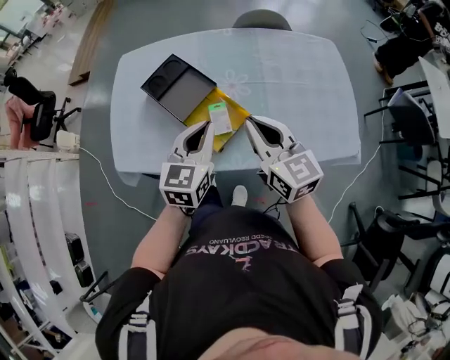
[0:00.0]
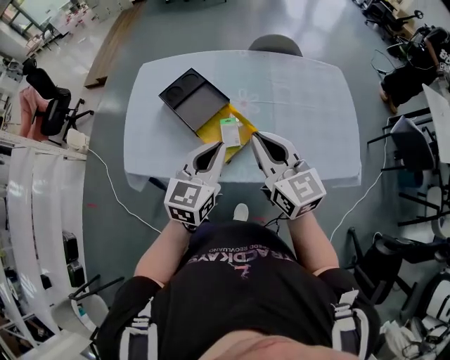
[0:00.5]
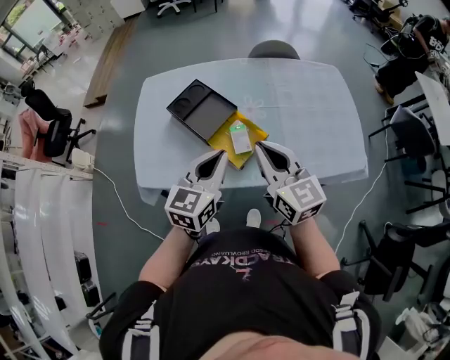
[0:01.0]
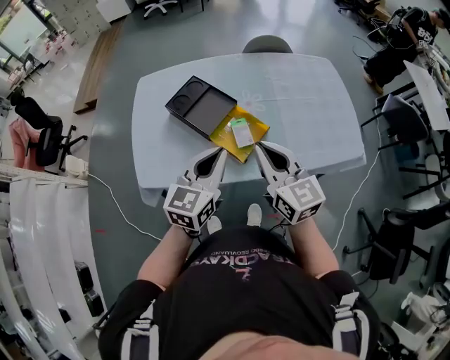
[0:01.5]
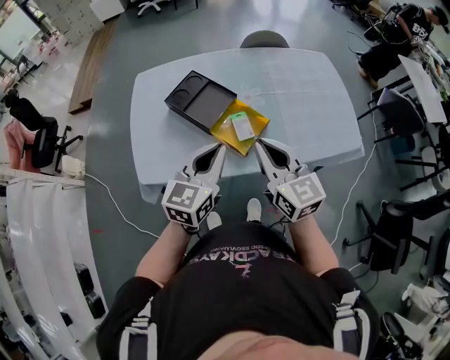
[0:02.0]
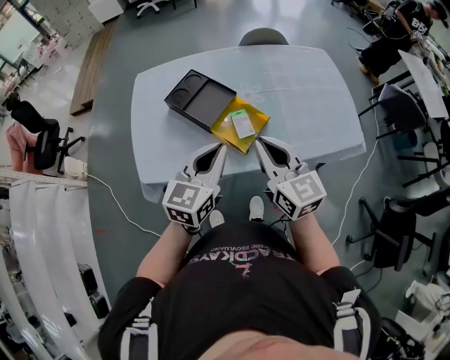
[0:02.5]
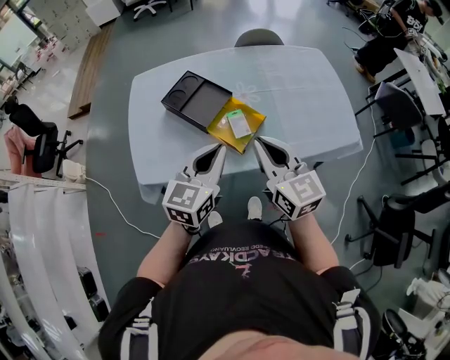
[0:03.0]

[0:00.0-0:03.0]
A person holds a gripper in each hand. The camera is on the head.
0:00.0 to 0:01.5: The left gripper moves to the left, backward and upward, approximately 10 cm, while the right gripper shifts about 10 cm to the left and backward.
0:01.5 to 0:03.0: The grippers make only small movements.

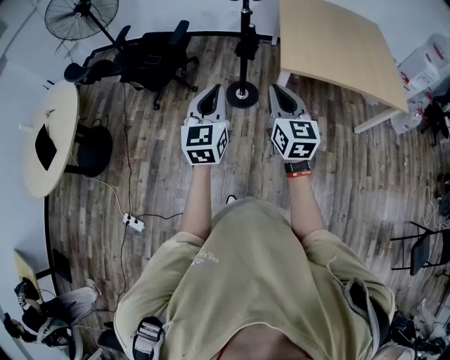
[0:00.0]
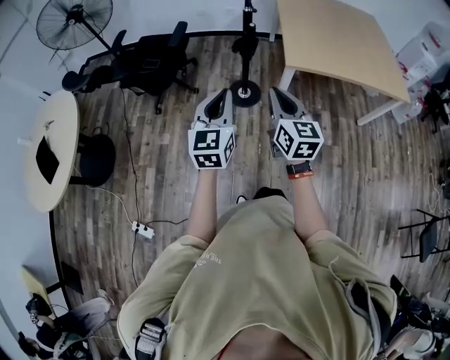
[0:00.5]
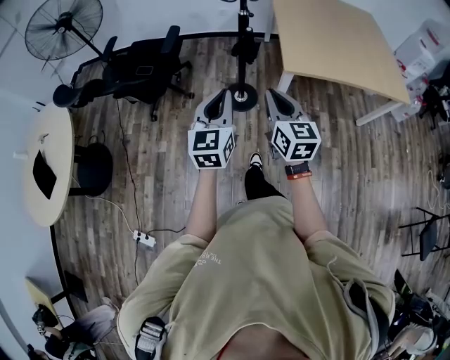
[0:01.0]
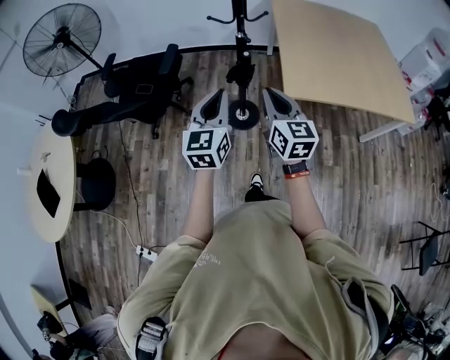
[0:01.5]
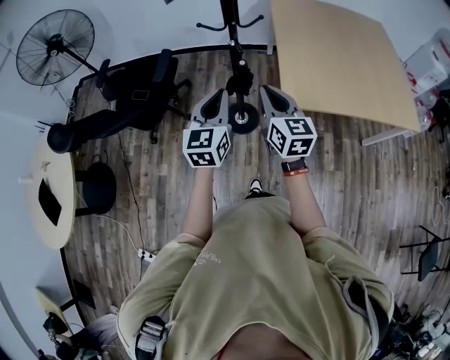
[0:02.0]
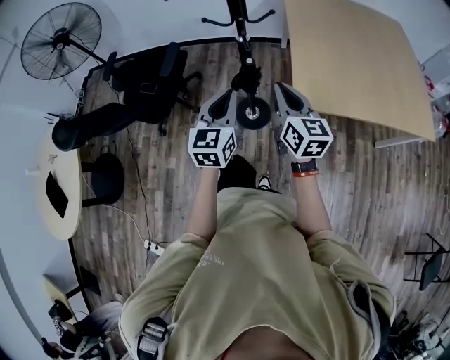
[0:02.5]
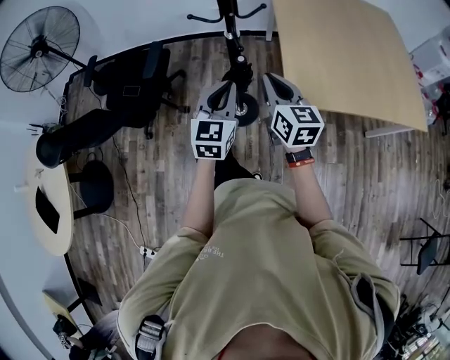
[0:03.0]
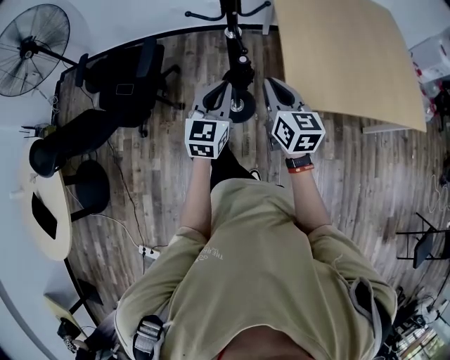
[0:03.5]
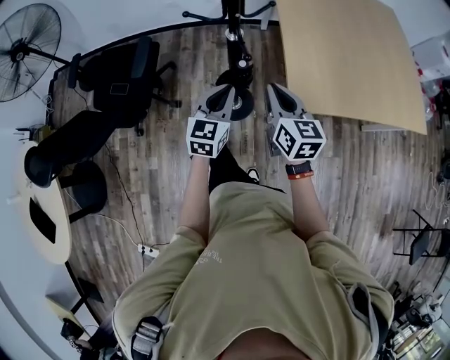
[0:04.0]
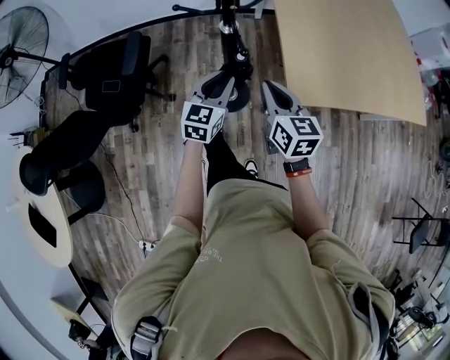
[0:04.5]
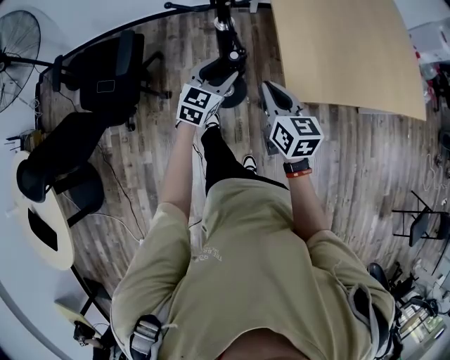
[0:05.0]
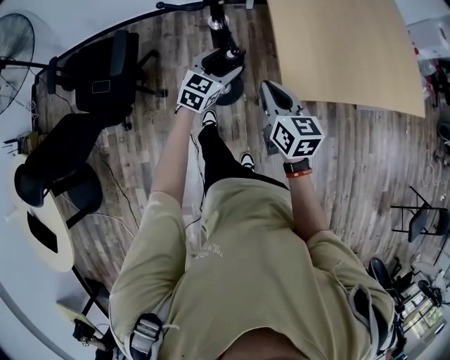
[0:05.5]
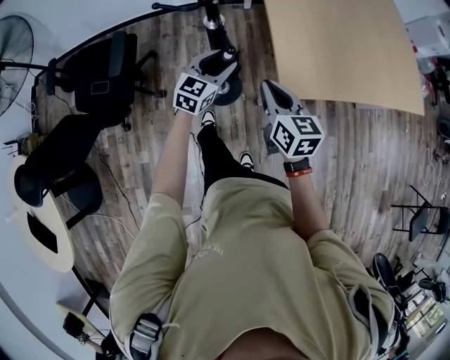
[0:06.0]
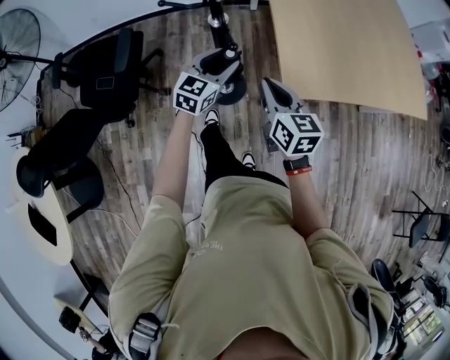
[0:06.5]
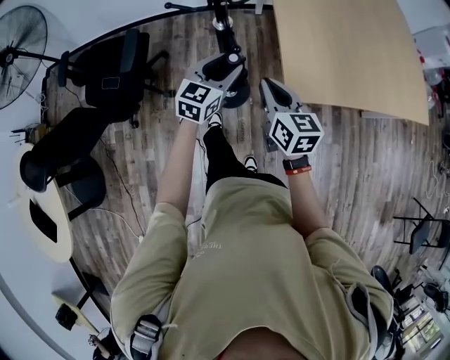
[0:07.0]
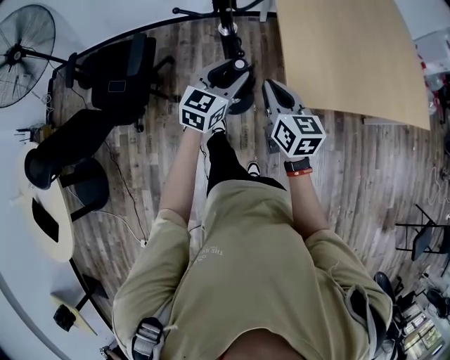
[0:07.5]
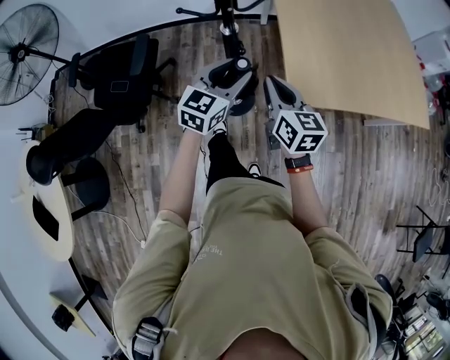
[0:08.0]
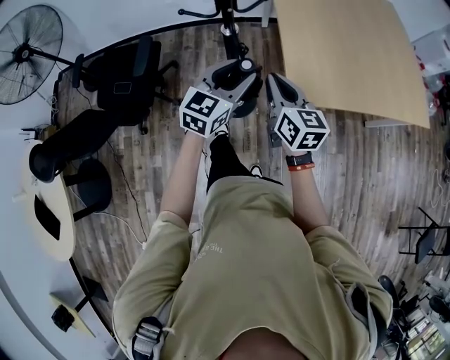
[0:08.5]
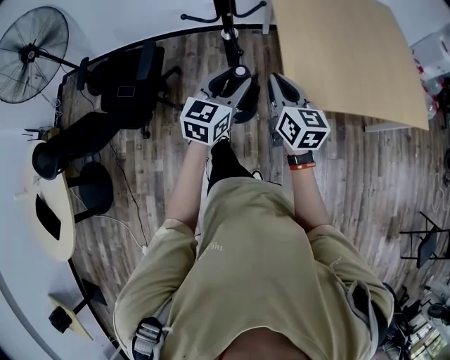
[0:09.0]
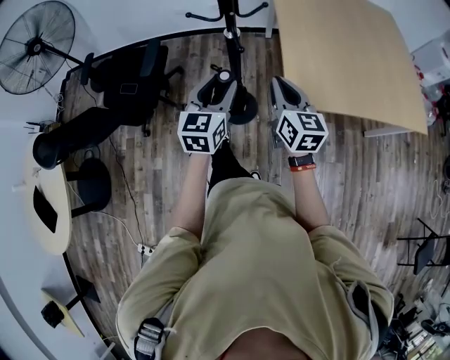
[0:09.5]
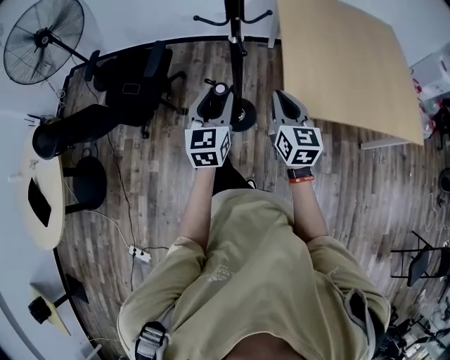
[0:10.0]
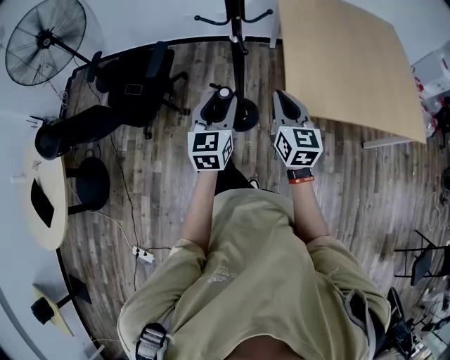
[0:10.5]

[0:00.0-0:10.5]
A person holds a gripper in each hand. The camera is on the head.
0:00.0 to 0:02.0: Both grippers move forward, approximately 35 cm.
0:02.0 to 0:04.0: Both grippers travel together forward and downward, about 25 cm.
0:04.0 to 0:06.5: The left gripper moves forward and downward, about 10 cm, and opens, while the right gripper travels downward by roughly 5 cm.
0:06.5 to 0:08.5: The left gripper goes some 15 cm upward and backward. Meanwhile the right gripper travels upward by roughly 5 cm.
0:08.5 to 0:10.5: The left gripper travels backward and to the left by approximately 15 cm, and turns by some 30 degrees. The right gripper moves backward, roughly 10 cm.

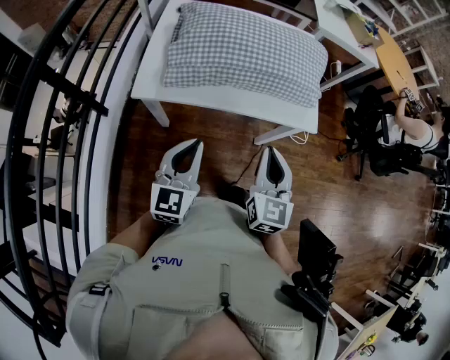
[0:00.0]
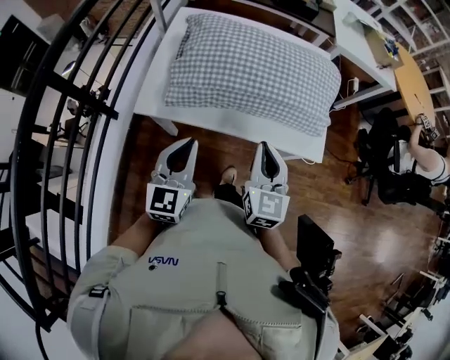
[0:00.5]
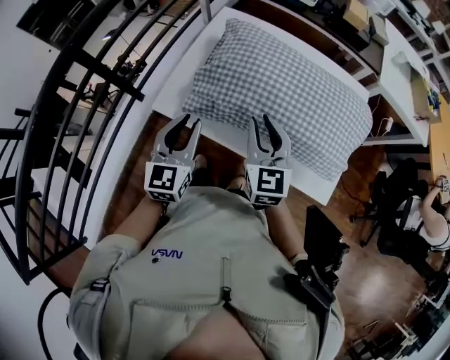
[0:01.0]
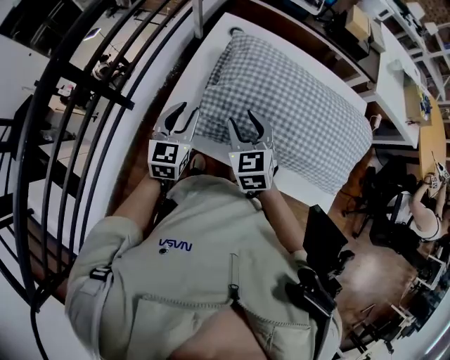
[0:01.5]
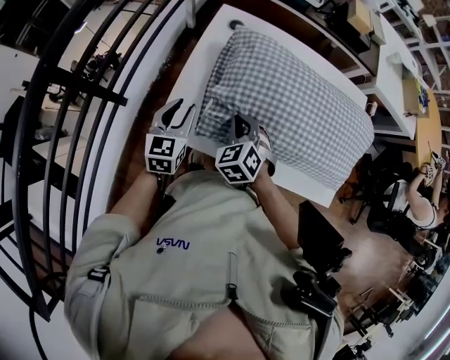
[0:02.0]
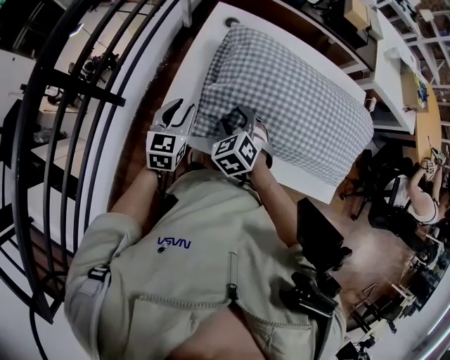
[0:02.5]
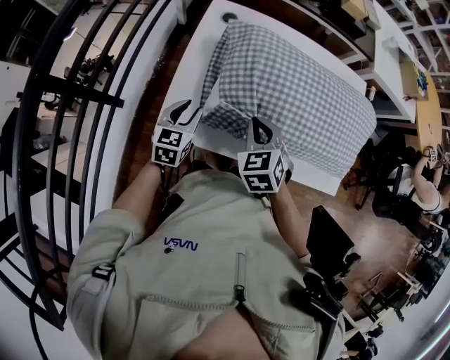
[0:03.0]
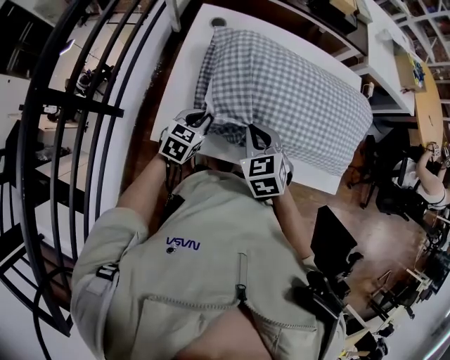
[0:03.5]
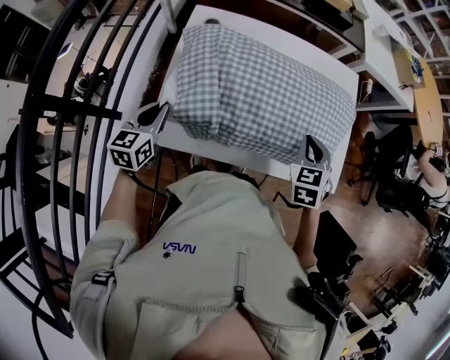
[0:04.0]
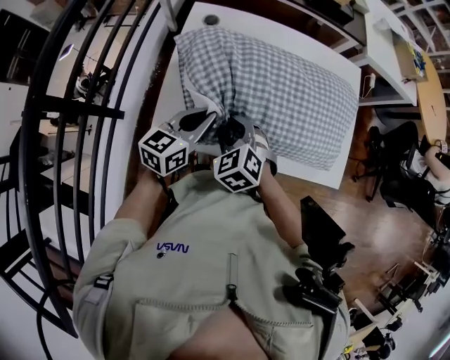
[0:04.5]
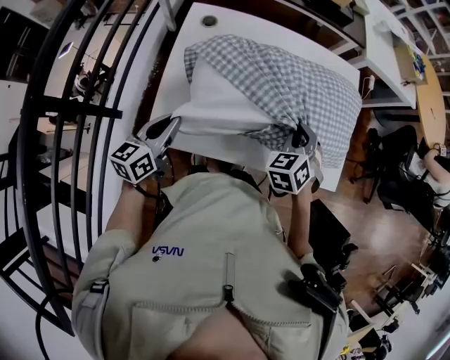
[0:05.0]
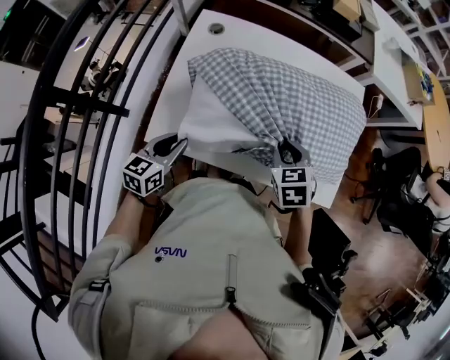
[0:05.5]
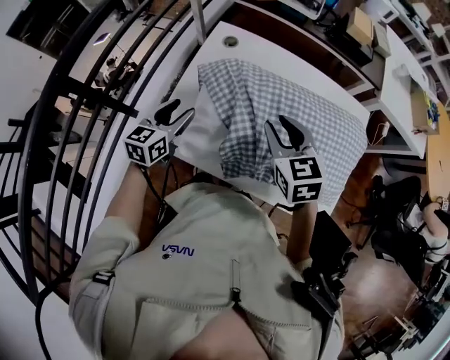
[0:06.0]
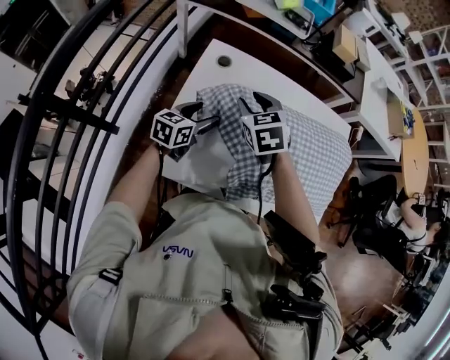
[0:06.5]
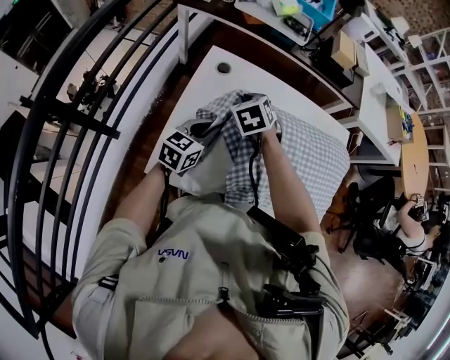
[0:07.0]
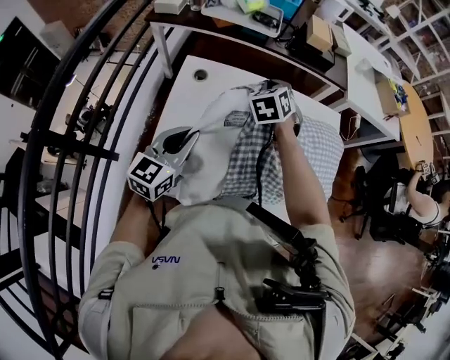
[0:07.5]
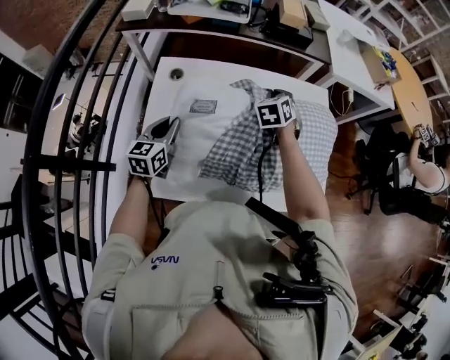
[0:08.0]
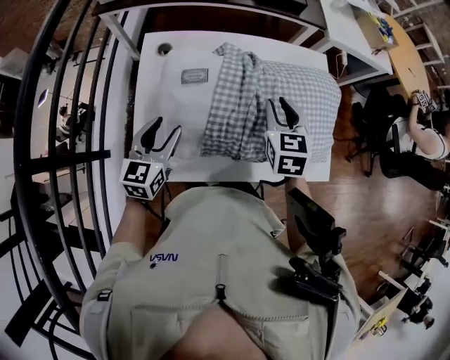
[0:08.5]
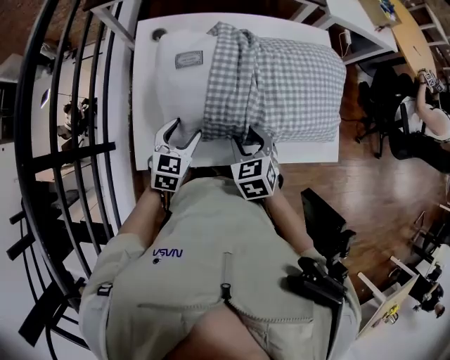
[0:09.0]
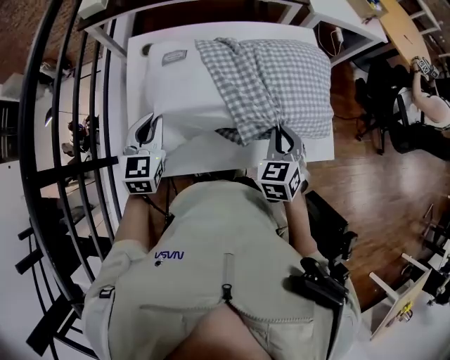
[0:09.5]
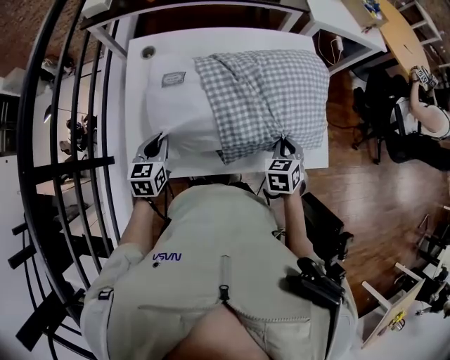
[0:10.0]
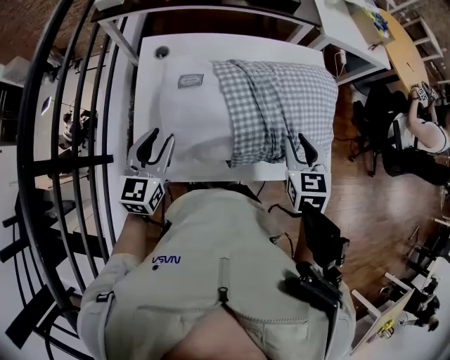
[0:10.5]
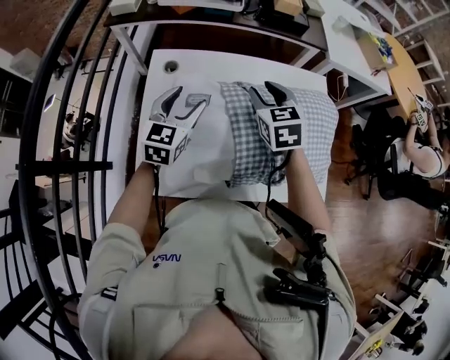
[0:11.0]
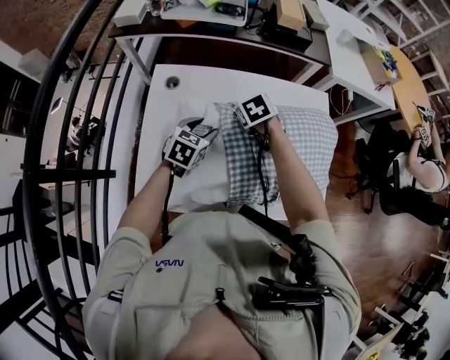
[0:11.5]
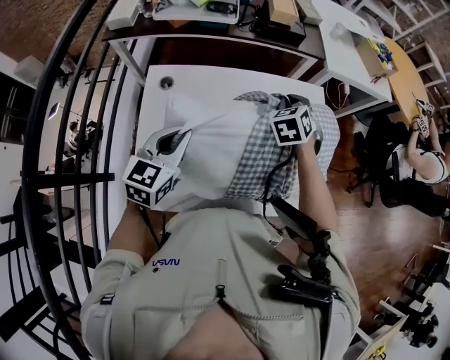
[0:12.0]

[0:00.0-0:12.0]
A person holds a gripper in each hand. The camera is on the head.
0:00.0 to 0:02.0: The right gripper changes place by about 40 cm, angles its fingers downward, by some 30 degrees, and opens, then closes again; the left gripper ends up about 35 cm from where it was, swivels roughly 20 degrees, and opens.
0:02.0 to 0:04.0: The left gripper goes to the right and returns, roughly 10 cm each way. Meanwhile the right gripper shifts roughly 25 cm to the right, rotates approximately 30 degrees, and opens, then closes once more.
0:04.0 to 0:06.0: The right gripper rotates approximately 40 degrees, and opens up. Meanwhile the left gripper opens up.
0:06.0 to 0:08.0: The right gripper swings up and down, roughly 10 cm each way, with 2 reversals, changes its angle by some 40 degrees, and closes. Meanwhile the left gripper moves up and down over about 15 cm, changing direction 2 times, and closes its fingers.
0:08.0 to 0:10.0: The left gripper goes forward and backward, roughly 10 cm each way, reversing 2 times, and opens, then closes again. Meanwhile the right gripper travels backward and to the right by approximately 30 cm, and opens, then closes again.
0:10.0 to 0:12.0: The right gripper goes approximately 30 cm forward, upward and to the left, and opens, then closes once more; the left gripper is displaced upward and forward by approximately 20 cm, and opens, then closes again.

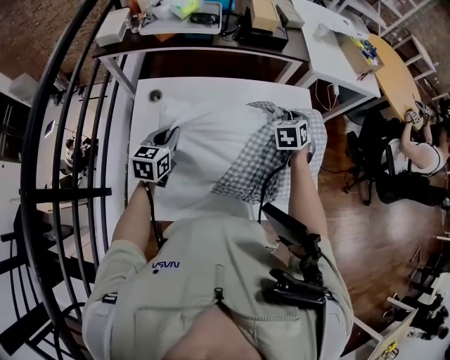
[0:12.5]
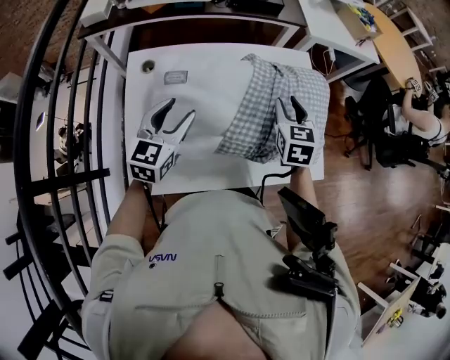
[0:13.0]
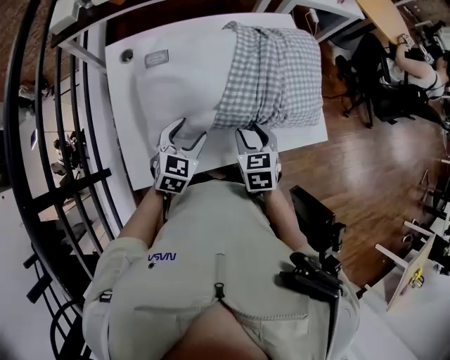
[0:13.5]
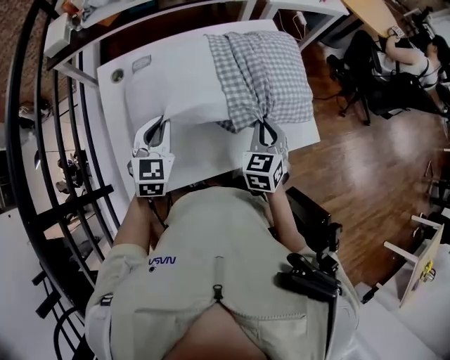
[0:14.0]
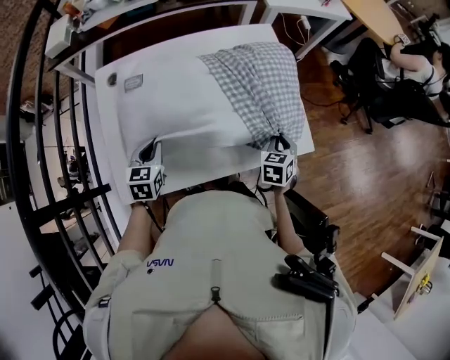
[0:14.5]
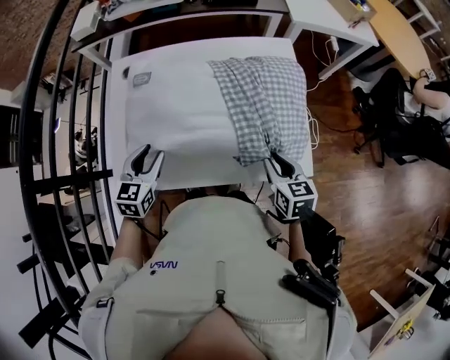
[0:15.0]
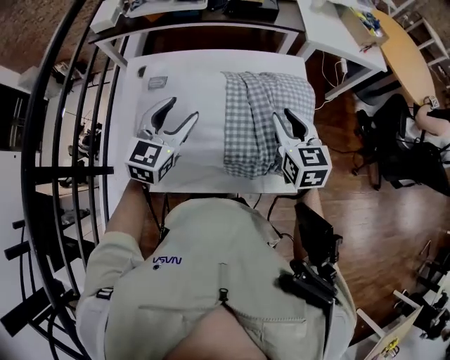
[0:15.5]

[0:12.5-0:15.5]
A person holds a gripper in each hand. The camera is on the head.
0:12.5 to 0:14.0: The right gripper moves backward, some 25 cm, and opens and closes again, while the left gripper travels backward and to the right by about 10 cm, turns by roughly 30 degrees, and opens, then closes once more.
0:14.0 to 0:15.5: The right gripper ends up about 15 cm from where it was, changes its angle by some 40 degrees, and opens its fingers; the left gripper moves roughly 10 cm, and opens.
